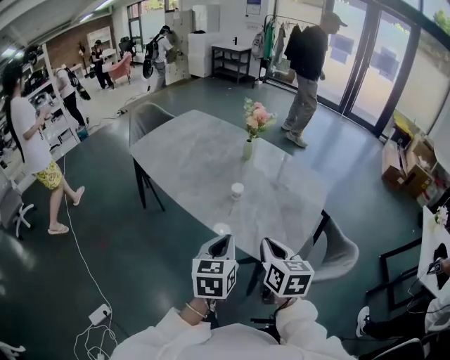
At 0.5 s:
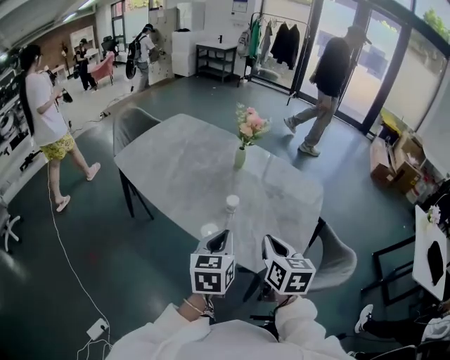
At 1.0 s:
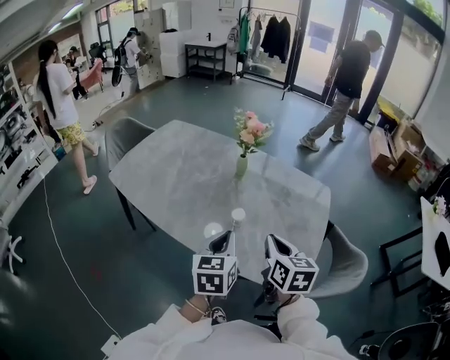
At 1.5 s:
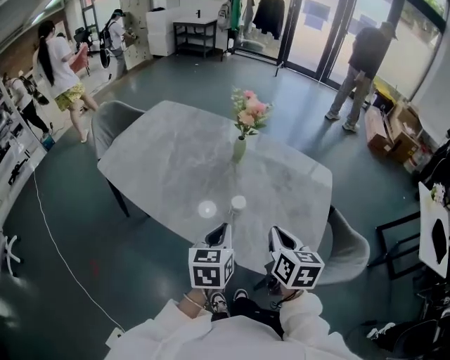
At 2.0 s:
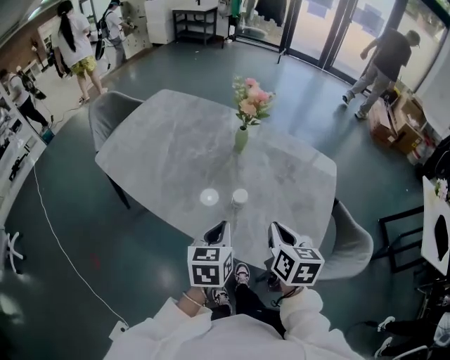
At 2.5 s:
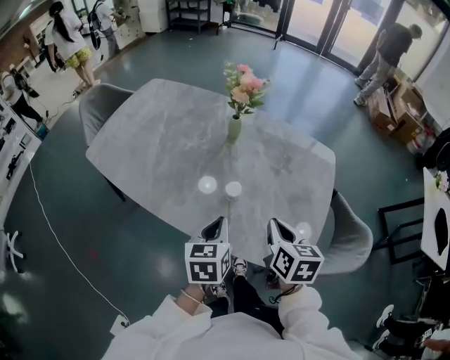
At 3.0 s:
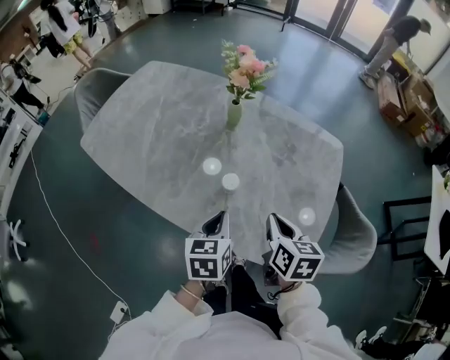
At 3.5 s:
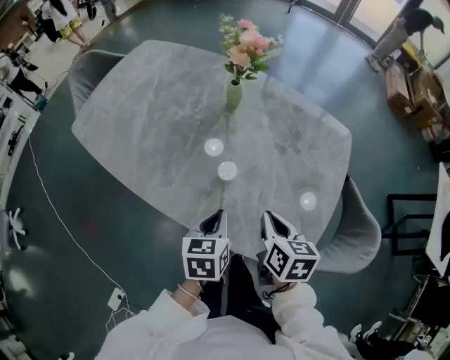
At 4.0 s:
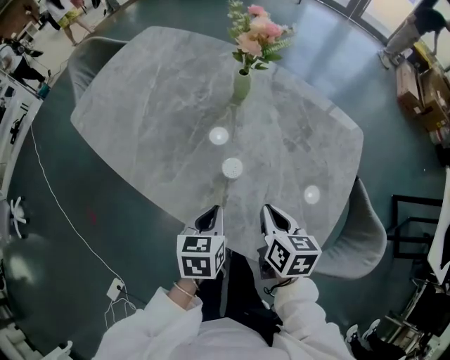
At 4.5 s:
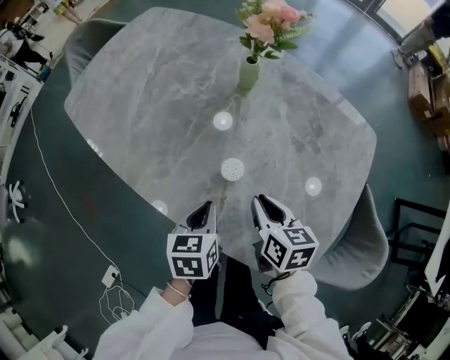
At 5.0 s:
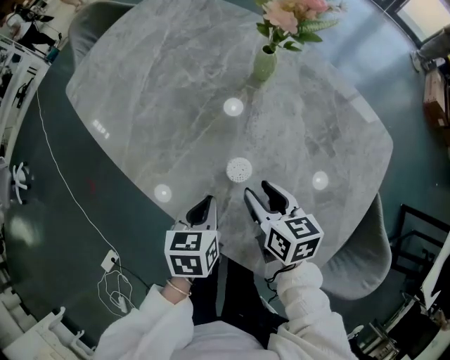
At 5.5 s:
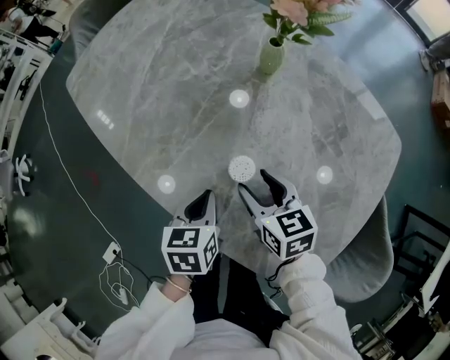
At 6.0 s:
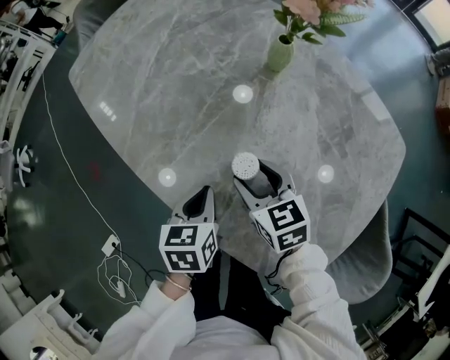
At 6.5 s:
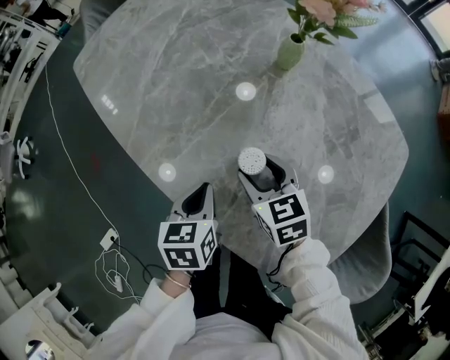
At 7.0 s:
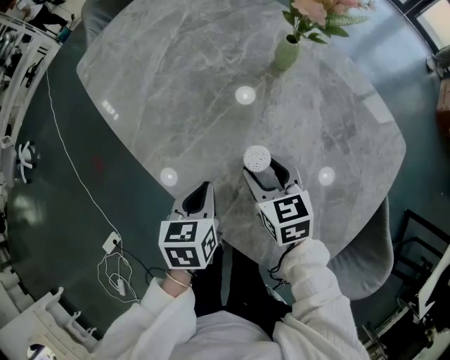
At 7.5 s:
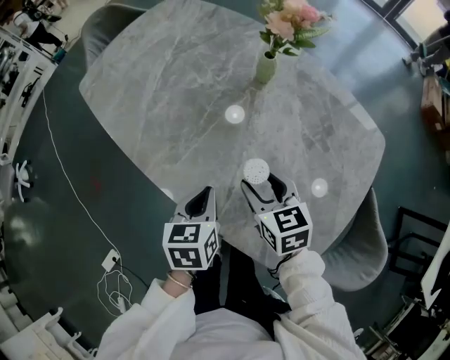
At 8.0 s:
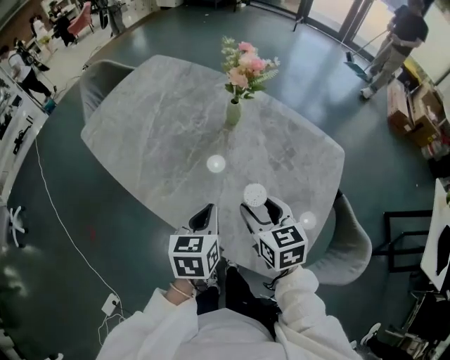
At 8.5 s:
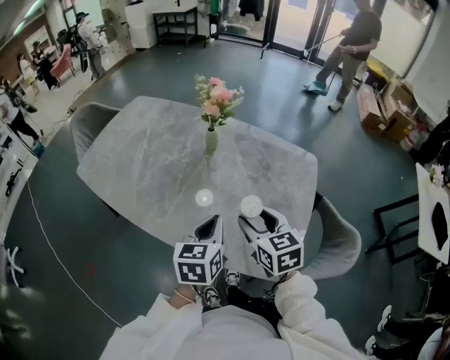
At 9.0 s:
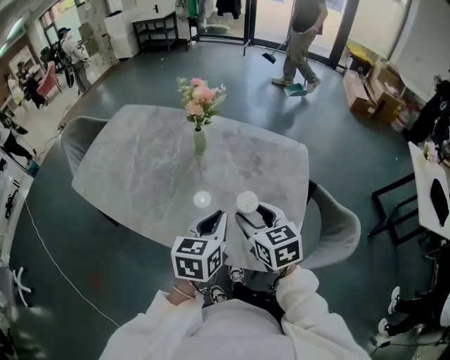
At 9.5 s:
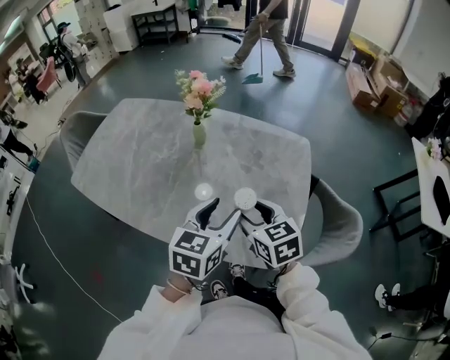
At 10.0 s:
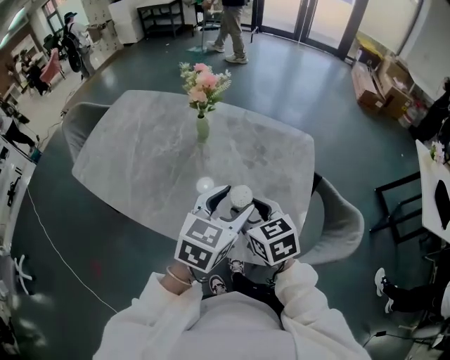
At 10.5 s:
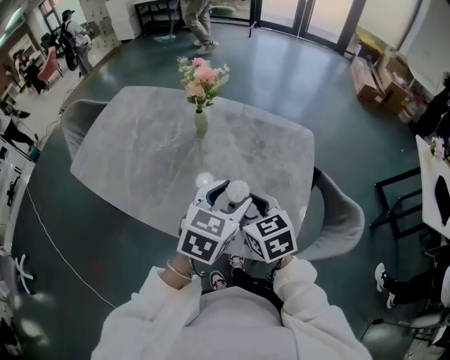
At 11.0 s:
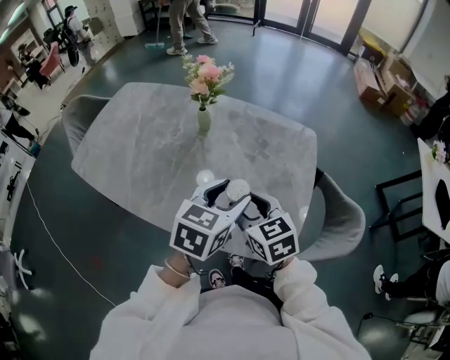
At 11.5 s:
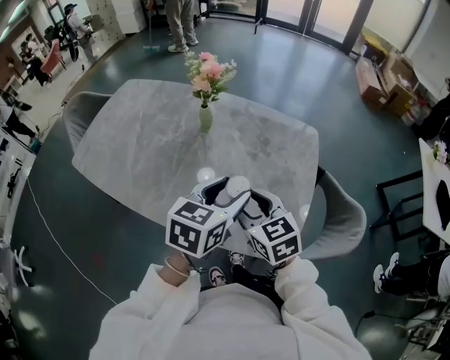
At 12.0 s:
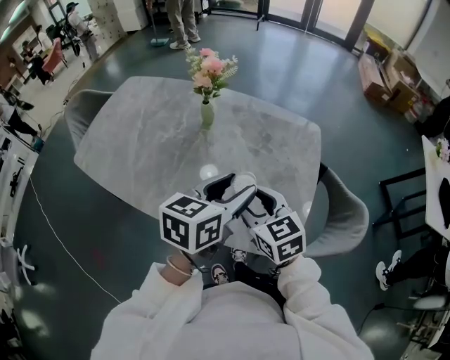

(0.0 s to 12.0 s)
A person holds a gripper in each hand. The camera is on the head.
0.0 s - 2.0 s: The grippers both shift forward by roughly 15 cm.
2.0 s - 4.0 s: Both grippers move downward, some 15 cm.
4.0 s - 6.0 s: The right gripper goes some 15 cm forward, to the left and downward, changes its angle by approximately 40 degrees, and opens up. Meanwhile the left gripper is displaced downward by some 5 cm.
6.0 s - 8.0 s: The right gripper shifts approximately 15 cm upward and backward. The left gripper goes about 15 cm upward.
8.0 s - 10.0 s: The left gripper shifts approximately 15 cm to the right and upward, changes its angle by approximately 40 degrees, and opens its fingers. Meanwhile the right gripper moves some 5 cm.
10.0 s - 12.0 s: The grippers move only a little.

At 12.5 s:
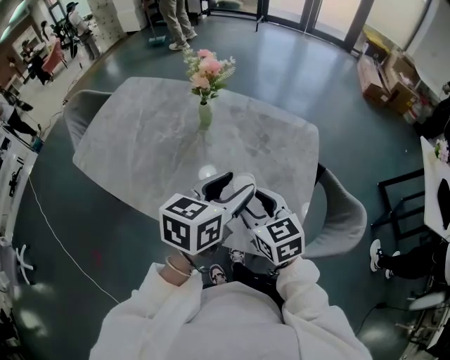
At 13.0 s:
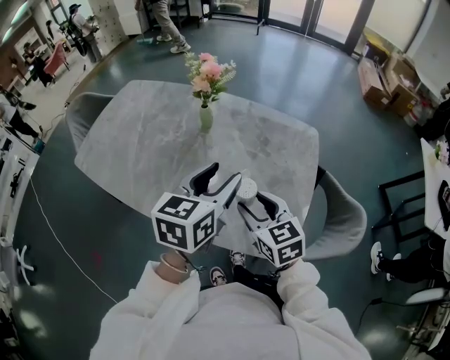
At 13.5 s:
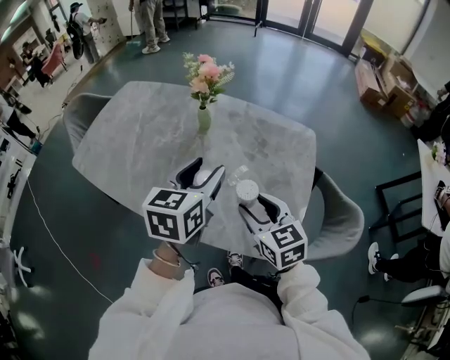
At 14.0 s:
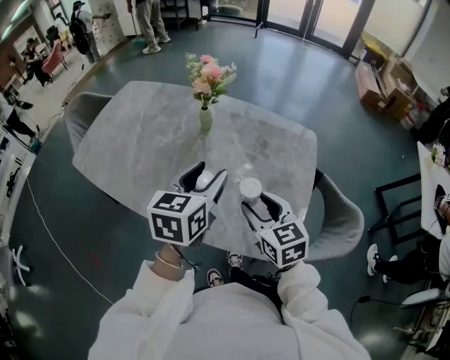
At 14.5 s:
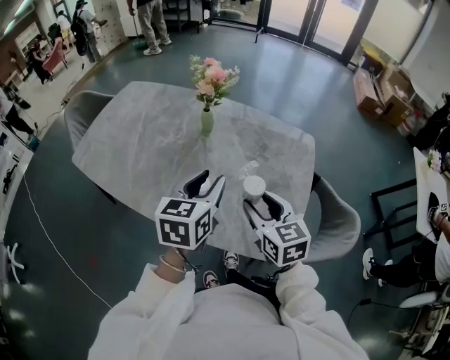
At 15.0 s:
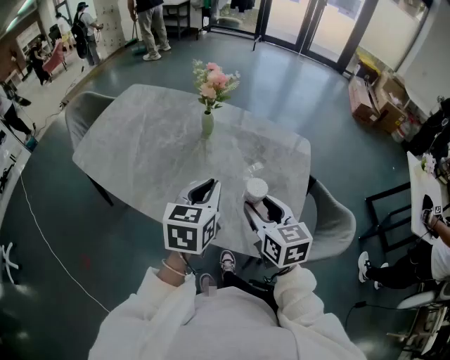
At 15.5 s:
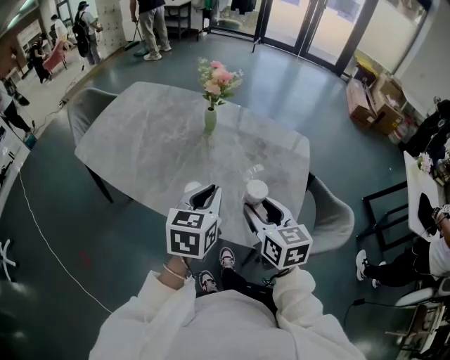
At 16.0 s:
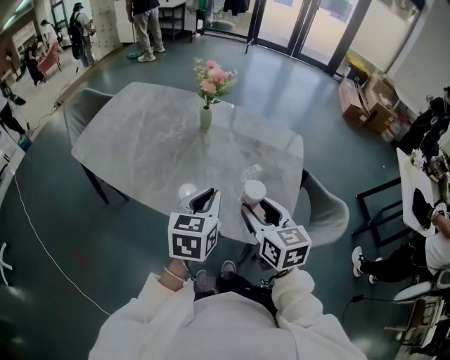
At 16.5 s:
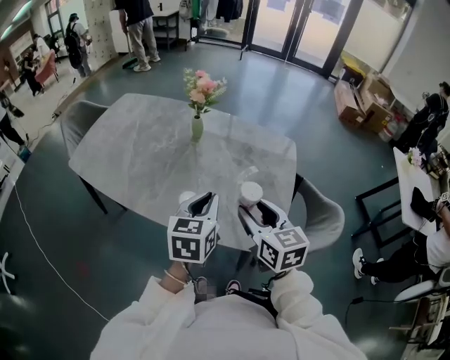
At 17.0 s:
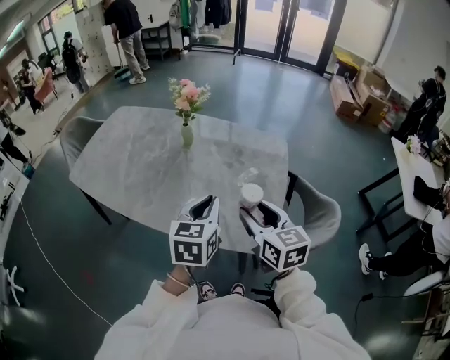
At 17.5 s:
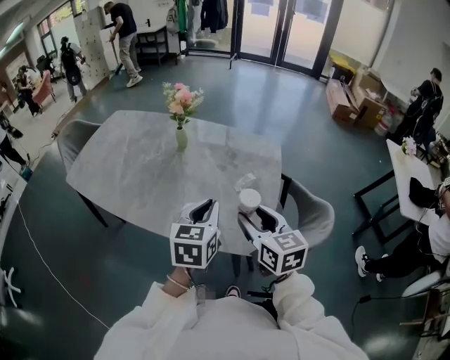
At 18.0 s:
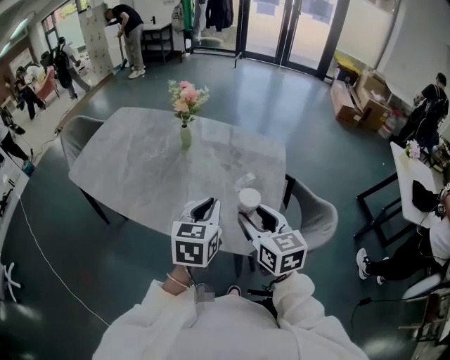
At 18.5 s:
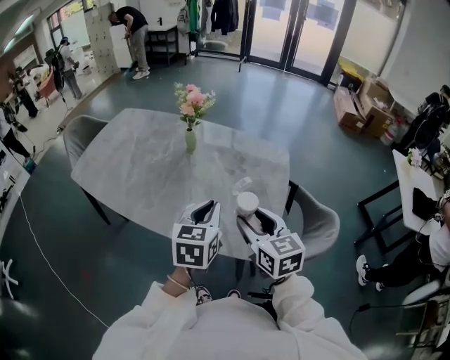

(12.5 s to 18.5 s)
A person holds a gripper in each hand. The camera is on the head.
12.5 s - 14.5 s: The left gripper is displaced to the left by approximately 5 cm.
14.5 s - 16.5 s: Both grippers travel together backward, about 10 cm. The left gripper closes its fingers.
16.5 s - 18.5 s: The left gripper moves to the right, some 5 cm.

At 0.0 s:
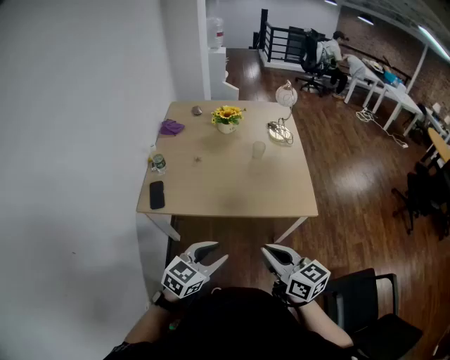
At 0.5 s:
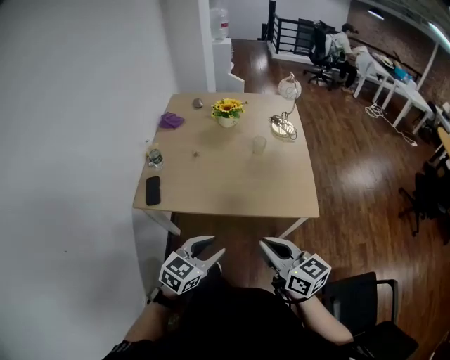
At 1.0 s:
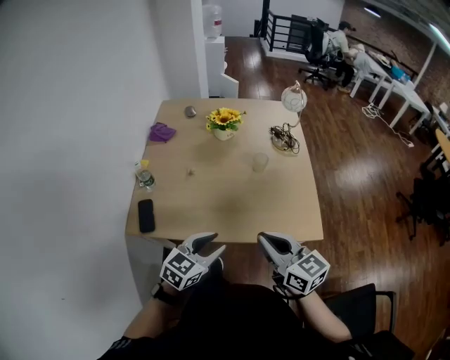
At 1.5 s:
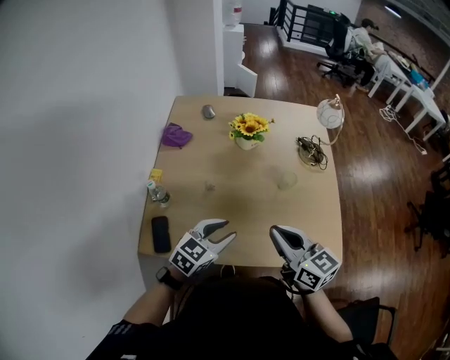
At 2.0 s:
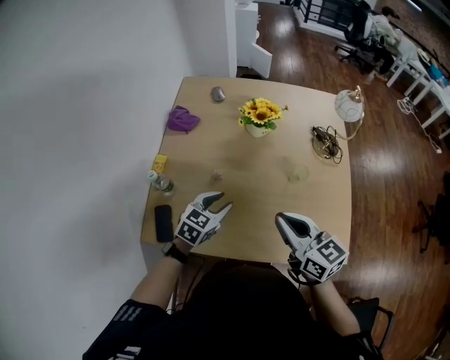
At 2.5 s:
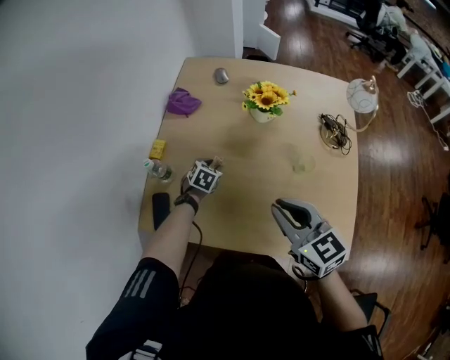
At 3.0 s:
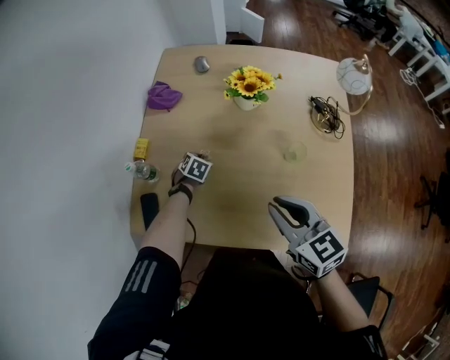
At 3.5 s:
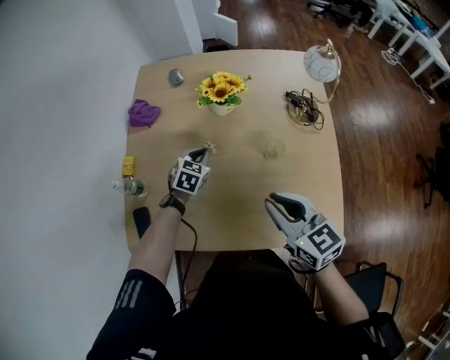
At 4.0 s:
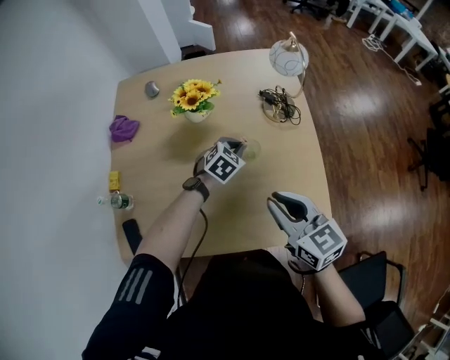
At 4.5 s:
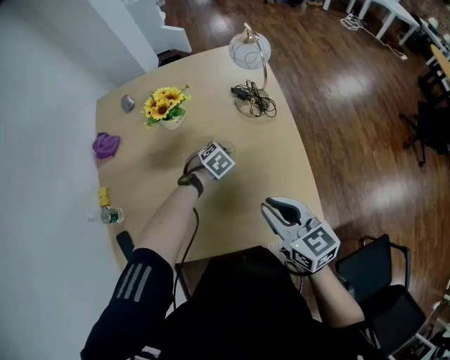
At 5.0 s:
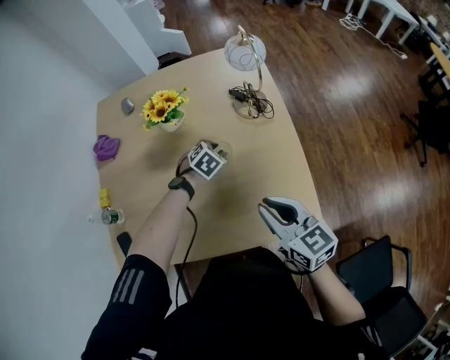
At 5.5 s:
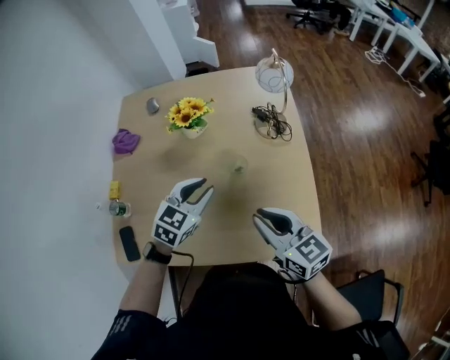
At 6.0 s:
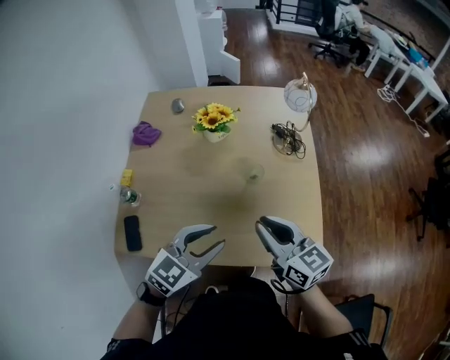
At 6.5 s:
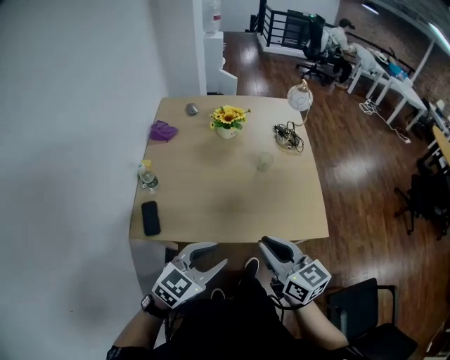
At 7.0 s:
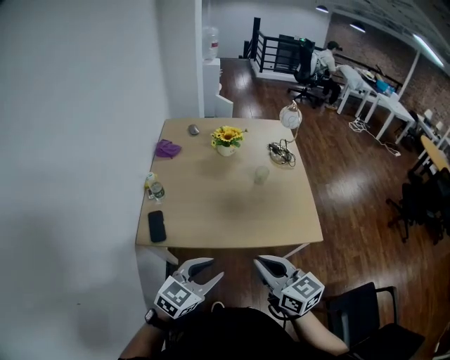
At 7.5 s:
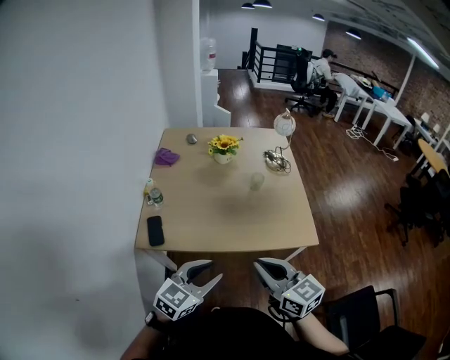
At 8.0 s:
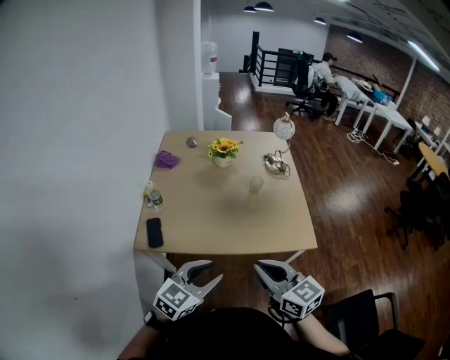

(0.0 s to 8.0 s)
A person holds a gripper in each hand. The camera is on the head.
0.0 s - 2.0 s: The two grippers travel together, forward, approximately 40 cm.
2.0 s - 4.0 s: The left gripper goes downward and returns, about 20 cm each way, turns by about 30 degrees, and closes its fingers; the right gripper shifts by approximately 15 cm.
4.0 s - 6.0 s: The left gripper shifts about 35 cm backward and upward, turns by about 30 degrees, and opens, while the right gripper reaches roughly 5 cm to the right, then returns.
6.0 s - 8.0 s: The two grippers go about 30 cm backward.

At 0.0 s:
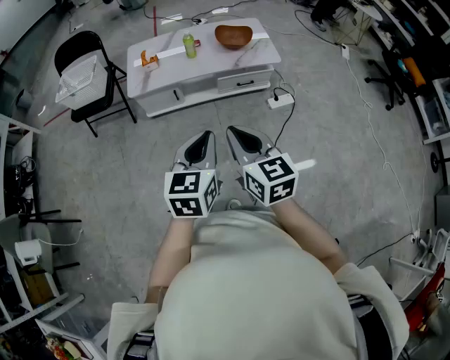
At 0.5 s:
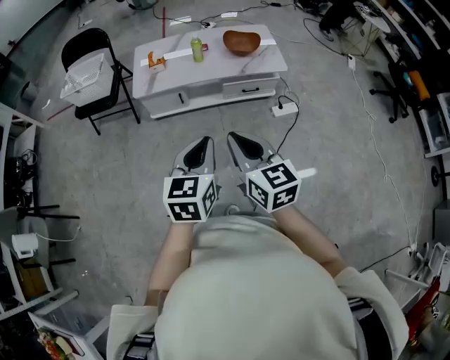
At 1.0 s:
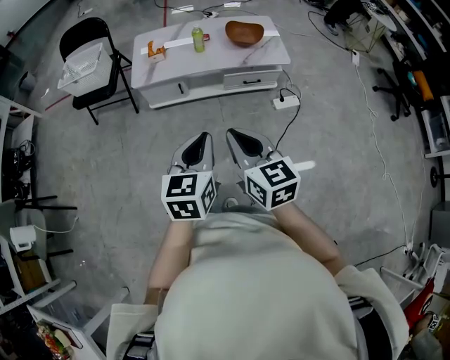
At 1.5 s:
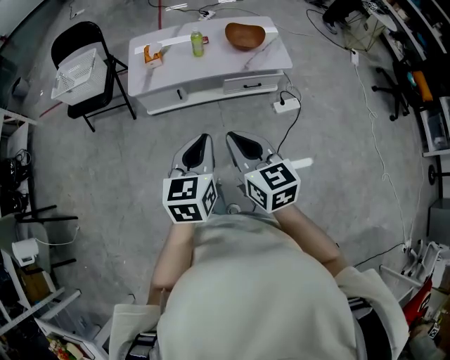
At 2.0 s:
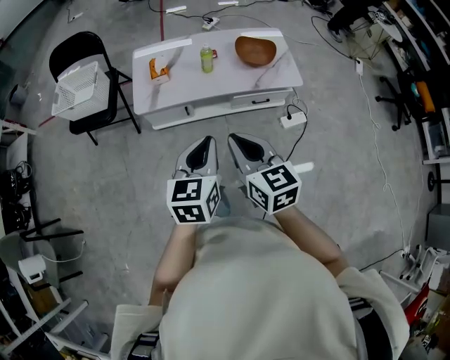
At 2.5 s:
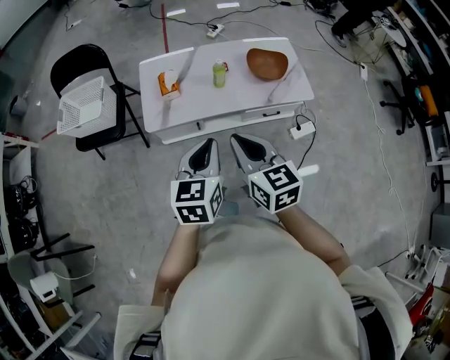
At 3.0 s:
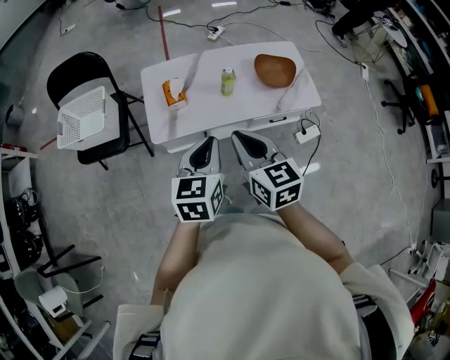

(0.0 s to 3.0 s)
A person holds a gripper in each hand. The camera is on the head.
0.0 s - 1.5 s: The two grippers go about 10 cm forward.
1.5 s - 3.0 s: The grippers both shift forward and to the left by approximately 35 cm.
